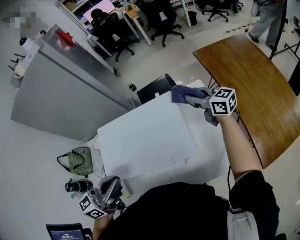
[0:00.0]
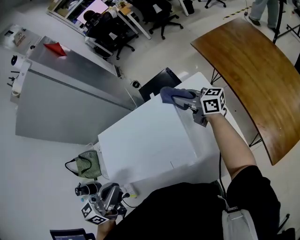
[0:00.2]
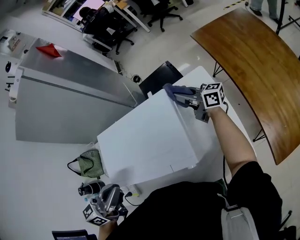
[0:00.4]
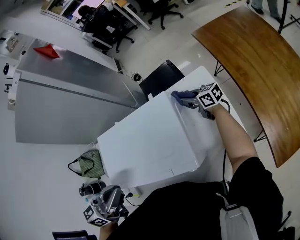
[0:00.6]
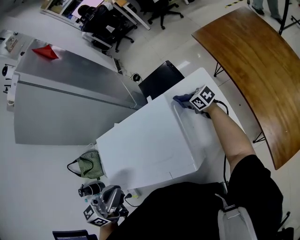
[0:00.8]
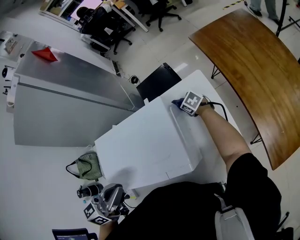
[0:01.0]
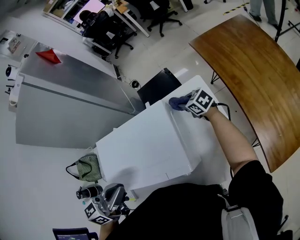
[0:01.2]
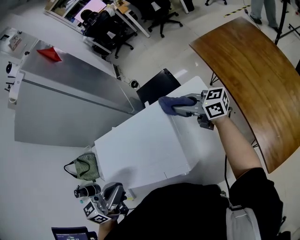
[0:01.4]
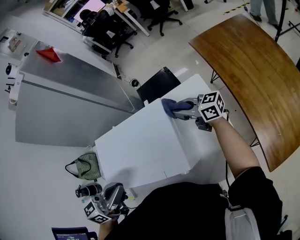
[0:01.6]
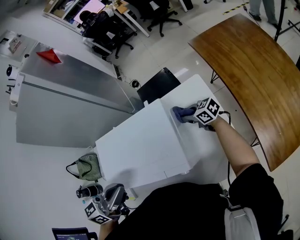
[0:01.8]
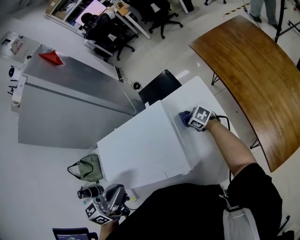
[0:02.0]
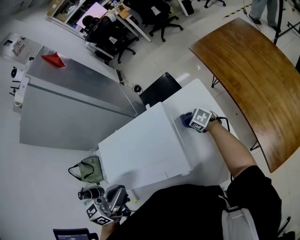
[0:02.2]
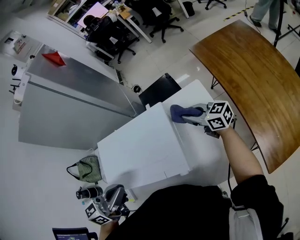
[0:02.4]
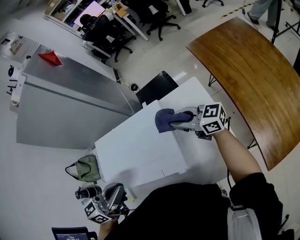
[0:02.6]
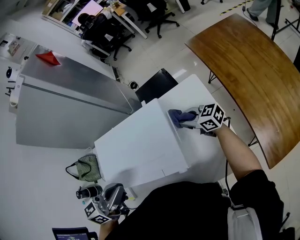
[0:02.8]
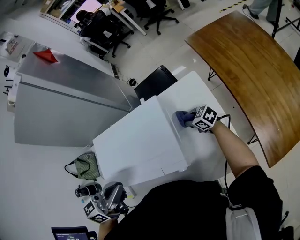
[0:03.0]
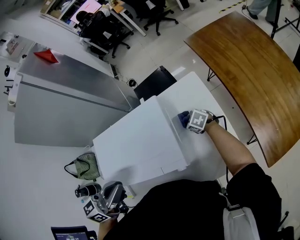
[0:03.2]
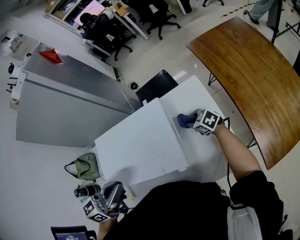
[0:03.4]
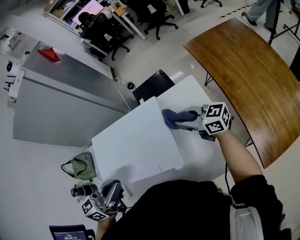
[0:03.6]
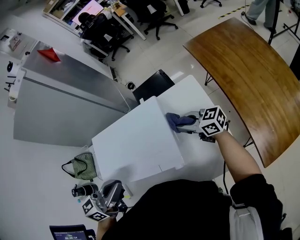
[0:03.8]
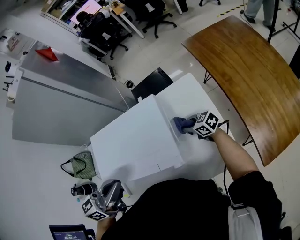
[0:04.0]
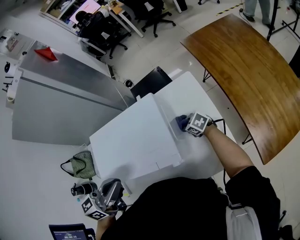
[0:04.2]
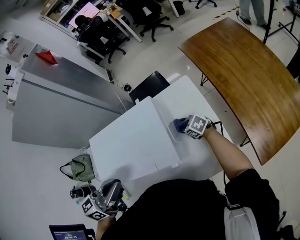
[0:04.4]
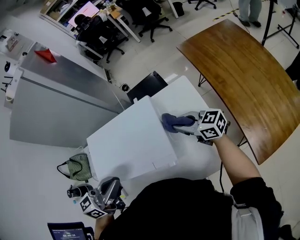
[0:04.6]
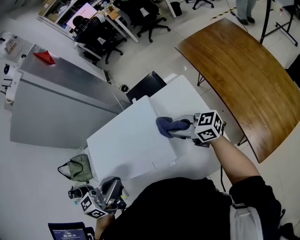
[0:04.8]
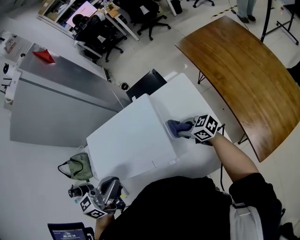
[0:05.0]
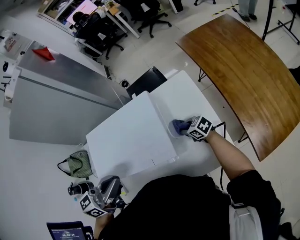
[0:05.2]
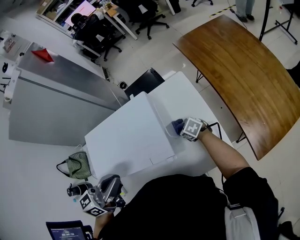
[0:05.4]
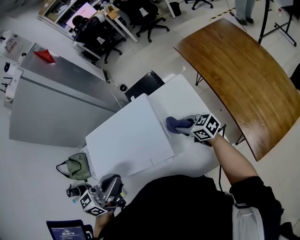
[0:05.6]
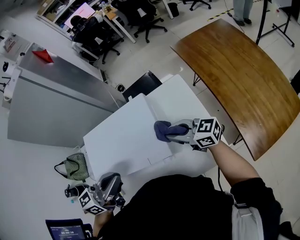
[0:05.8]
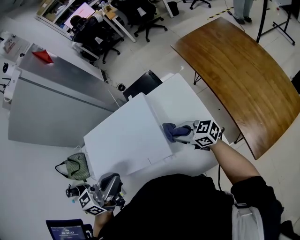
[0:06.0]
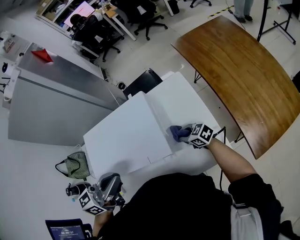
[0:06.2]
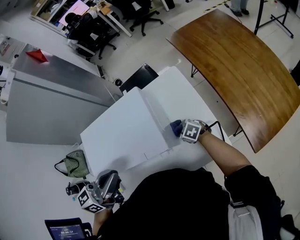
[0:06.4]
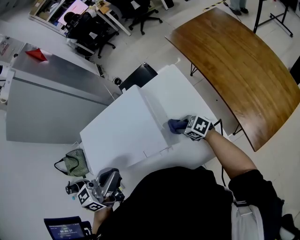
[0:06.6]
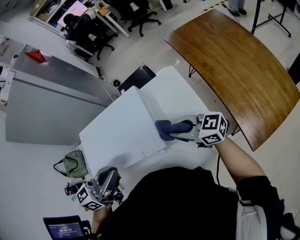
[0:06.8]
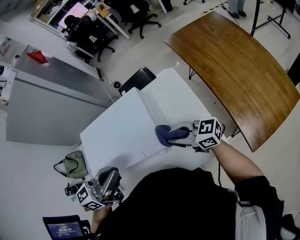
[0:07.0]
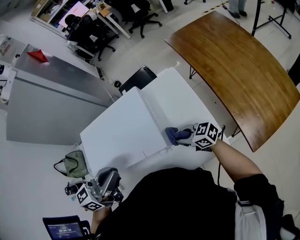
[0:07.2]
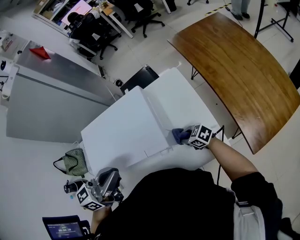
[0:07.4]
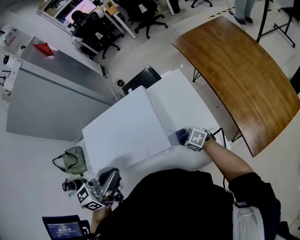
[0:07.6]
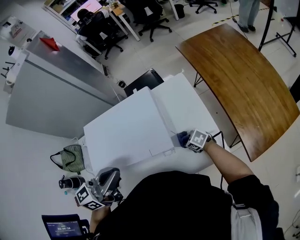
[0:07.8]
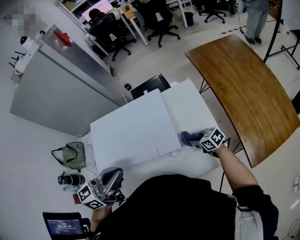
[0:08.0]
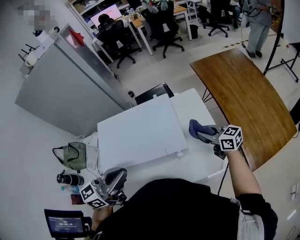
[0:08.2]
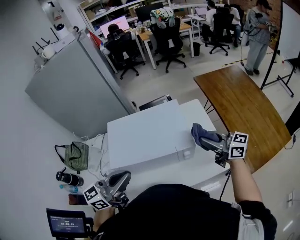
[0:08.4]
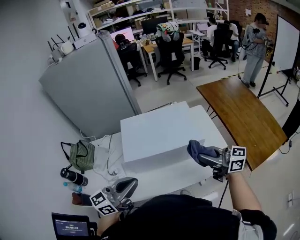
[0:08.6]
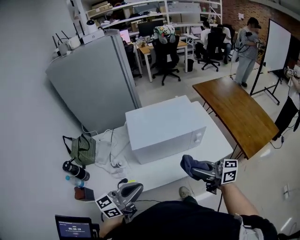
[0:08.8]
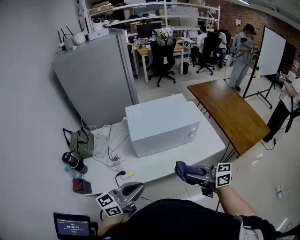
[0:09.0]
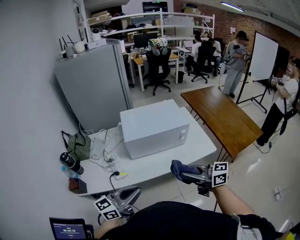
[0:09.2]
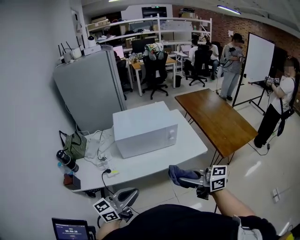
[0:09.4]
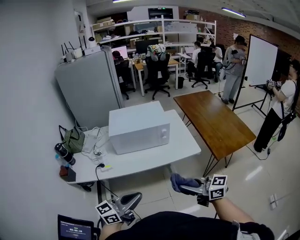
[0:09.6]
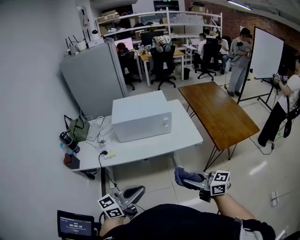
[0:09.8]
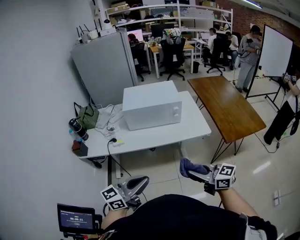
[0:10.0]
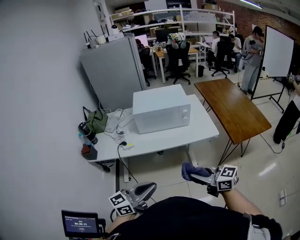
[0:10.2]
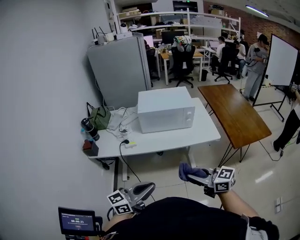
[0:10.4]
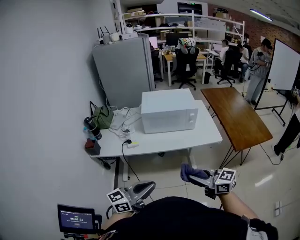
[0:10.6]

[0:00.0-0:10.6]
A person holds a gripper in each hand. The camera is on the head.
0:00.0 to 0:01.6: The right gripper travels downward and back again, roughly 30 cm each way, and swivels roughly 20 degrees, while the left gripper moves to the right, roughly 5 cm.
0:01.6 to 0:03.0: The right gripper swings up and down, about 25 cm each way, with 2 reversals, and points its fingers some 30 degrees further downward.
0:03.0 to 0:04.6: The right gripper goes up and down, roughly 25 cm each way, reversing 3 times, and rotates about 20 degrees.
0:04.6 to 0:06.0: The right gripper goes up and down, approximately 25 cm each way, reversing 2 times.
0:06.0 to 0:07.6: The right gripper goes up and down, about 25 cm each way, reversing 2 times, and angles its fingers downward, by approximately 40 degrees.
0:07.6 to 0:09.0: The right gripper moves upward, roughly 35 cm, and points its fingers some 50 degrees further upward. Meanwhile the left gripper changes place by roughly 35 cm.
0:09.0 to 0:10.6: Both grippers move backward, some 25 cm.

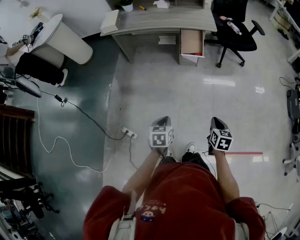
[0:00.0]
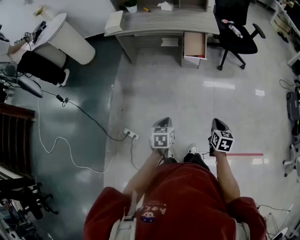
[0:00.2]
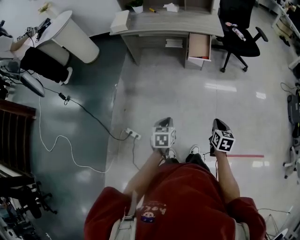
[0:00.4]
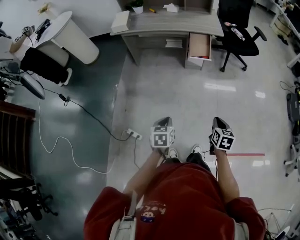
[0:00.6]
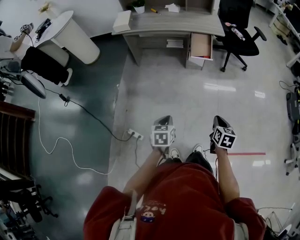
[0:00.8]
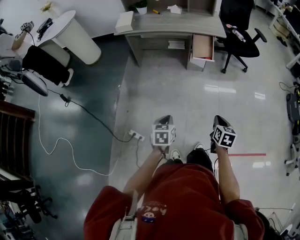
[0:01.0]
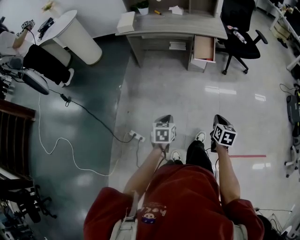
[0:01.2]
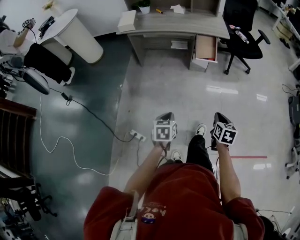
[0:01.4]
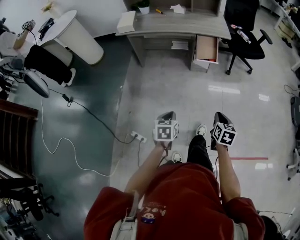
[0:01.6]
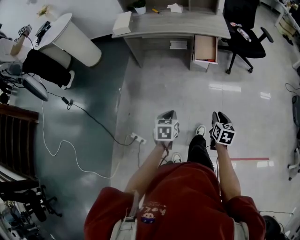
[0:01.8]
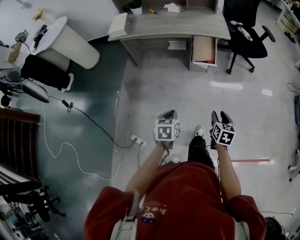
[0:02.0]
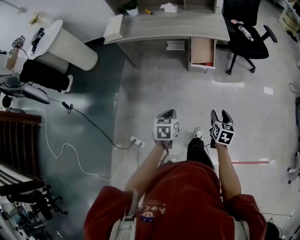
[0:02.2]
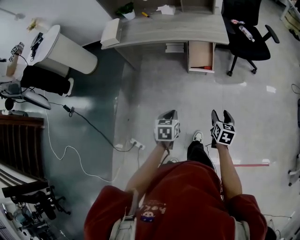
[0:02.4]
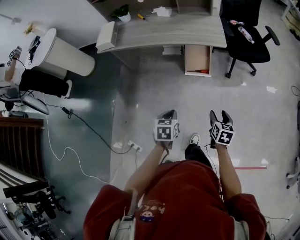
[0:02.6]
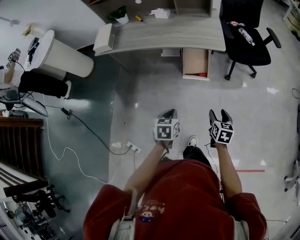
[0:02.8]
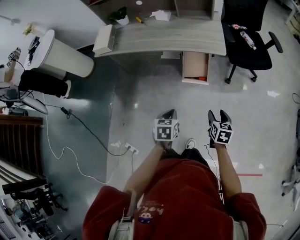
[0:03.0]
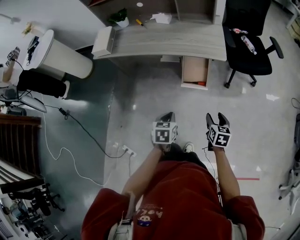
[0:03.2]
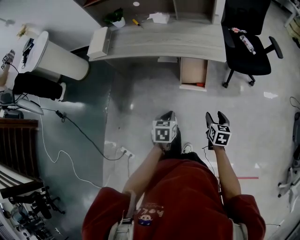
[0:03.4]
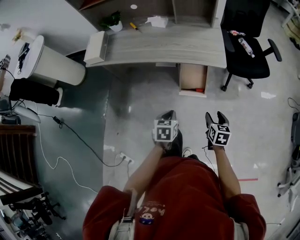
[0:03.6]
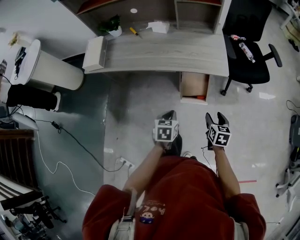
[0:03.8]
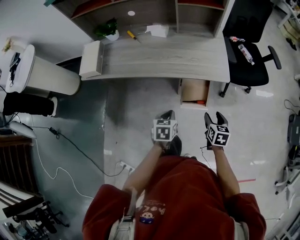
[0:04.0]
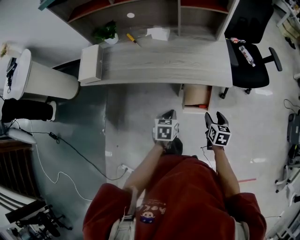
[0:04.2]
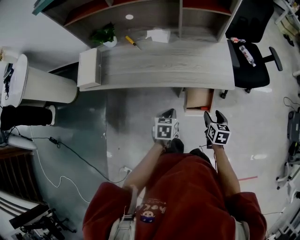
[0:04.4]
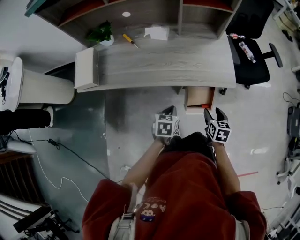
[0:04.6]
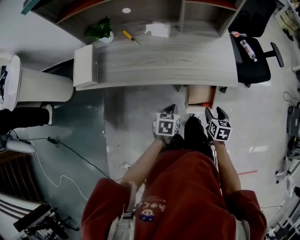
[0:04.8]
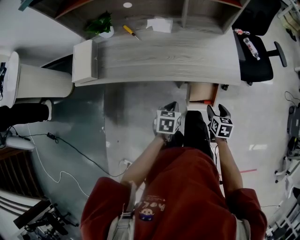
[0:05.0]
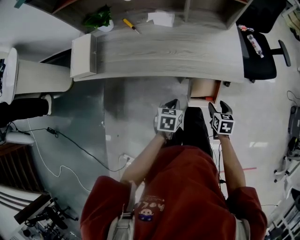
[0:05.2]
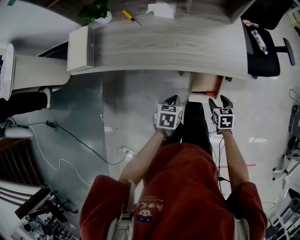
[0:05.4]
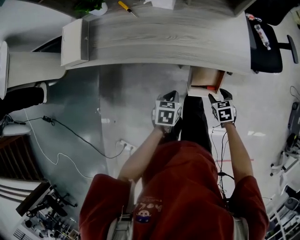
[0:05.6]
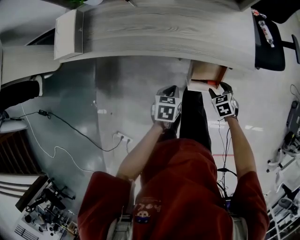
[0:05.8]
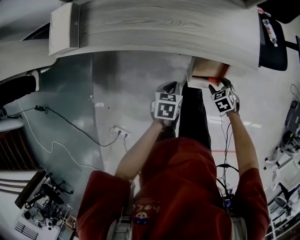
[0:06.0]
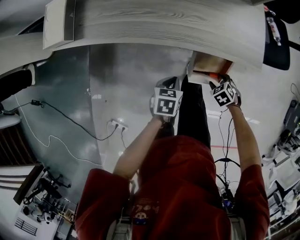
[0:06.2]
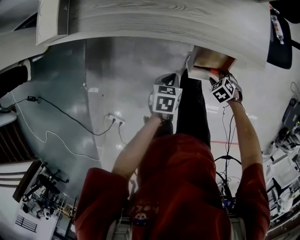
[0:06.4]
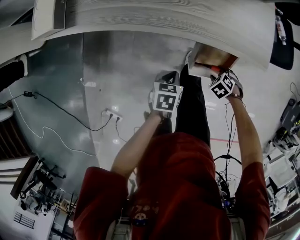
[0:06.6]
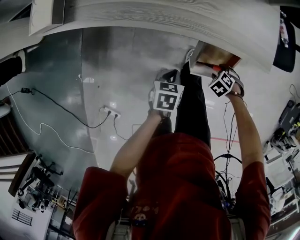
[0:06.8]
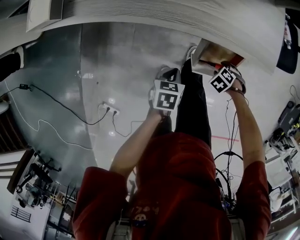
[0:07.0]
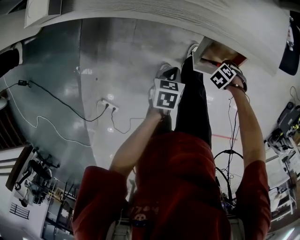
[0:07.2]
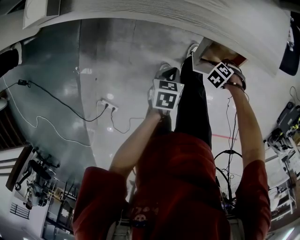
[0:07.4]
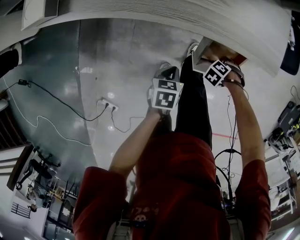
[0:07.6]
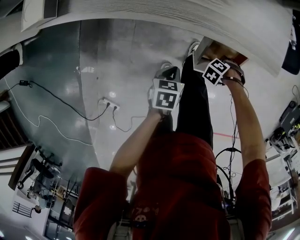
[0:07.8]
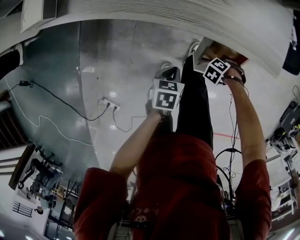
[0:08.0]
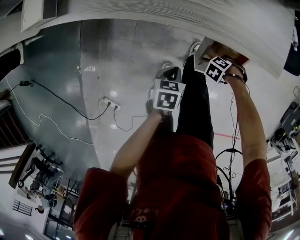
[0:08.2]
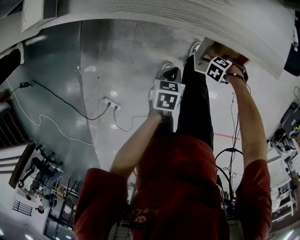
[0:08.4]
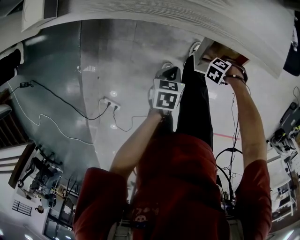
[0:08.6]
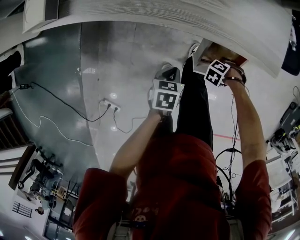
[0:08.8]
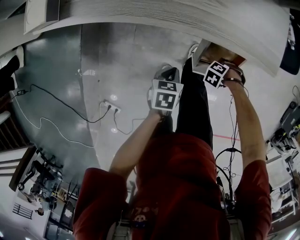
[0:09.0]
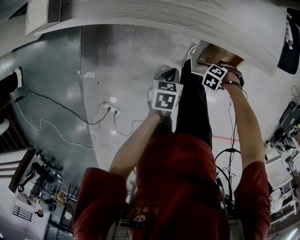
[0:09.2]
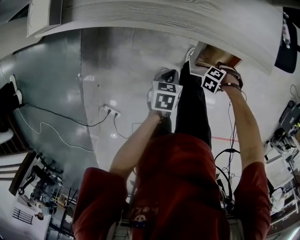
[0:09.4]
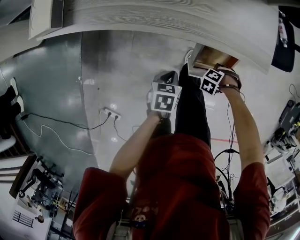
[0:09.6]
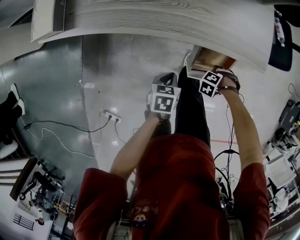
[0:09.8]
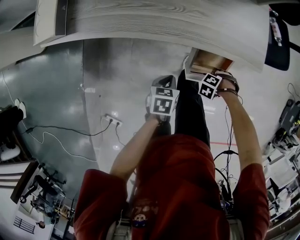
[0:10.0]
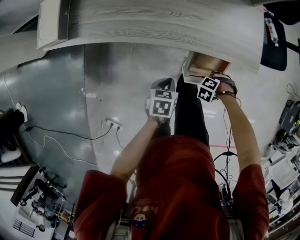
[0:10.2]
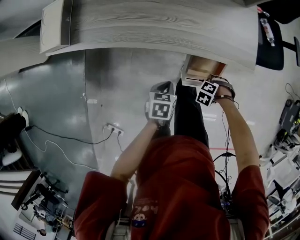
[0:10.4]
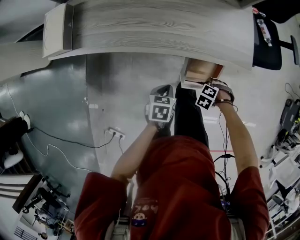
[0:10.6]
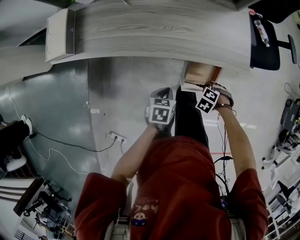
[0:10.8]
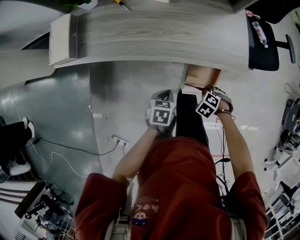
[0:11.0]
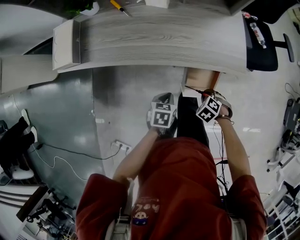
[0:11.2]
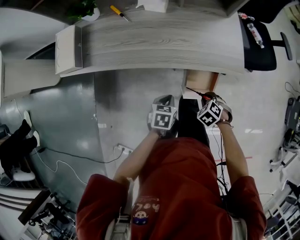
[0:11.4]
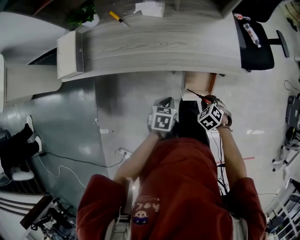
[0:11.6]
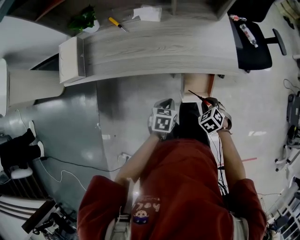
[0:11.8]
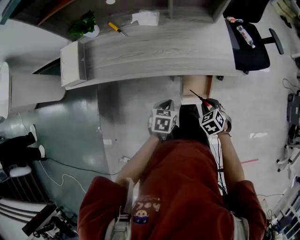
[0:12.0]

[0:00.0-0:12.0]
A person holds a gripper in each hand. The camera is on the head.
0:00.0 to 0:01.6: The two grippers go roughly 10 cm to the left.
0:01.6 to 0:03.0: The grippers both shift forward and to the right by some 35 cm. The right gripper opens its fingers.
0:03.0 to 0:04.4: The left gripper travels forward by about 30 cm, while the right gripper is displaced forward and to the left by roughly 30 cm.
0:04.4 to 0:06.0: Both grippers travel together downward, roughly 15 cm. The right gripper rotates around the line of its fingers by some 40 degrees, counterclockwise from behind.
0:06.0 to 0:07.6: The grippers both shift downward by some 10 cm. The right gripper turns by roughly 40 degrees.
0:07.6 to 0:09.0: The right gripper closes up.
0:09.0 to 0:10.4: The two grippers go some 5 cm upward.
0:10.4 to 0:12.0: The left gripper heads upward, covering some 10 cm, while the right gripper heads upward, covering some 15 cm, and turns by some 50 degrees.

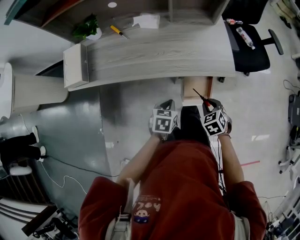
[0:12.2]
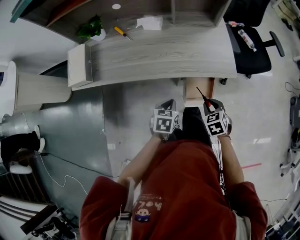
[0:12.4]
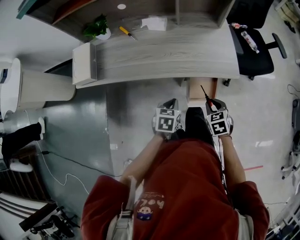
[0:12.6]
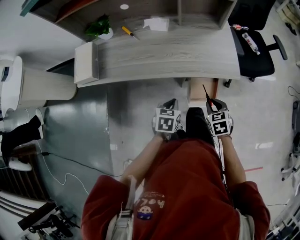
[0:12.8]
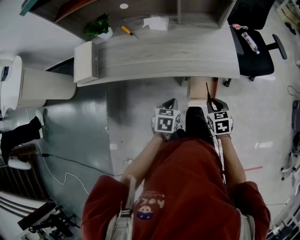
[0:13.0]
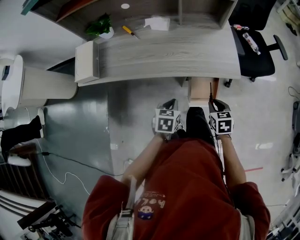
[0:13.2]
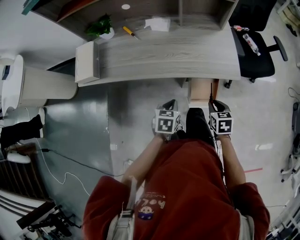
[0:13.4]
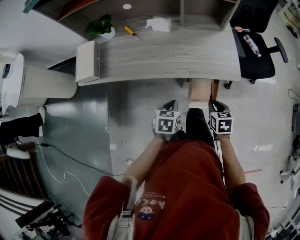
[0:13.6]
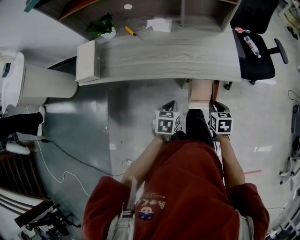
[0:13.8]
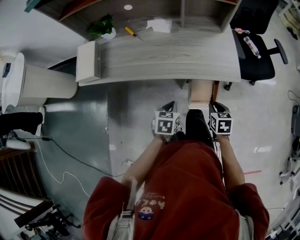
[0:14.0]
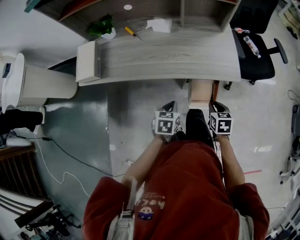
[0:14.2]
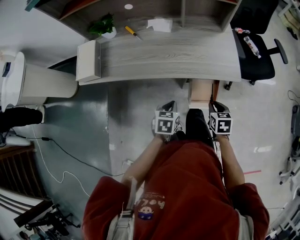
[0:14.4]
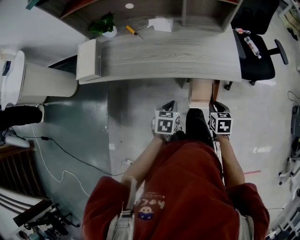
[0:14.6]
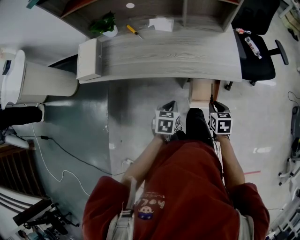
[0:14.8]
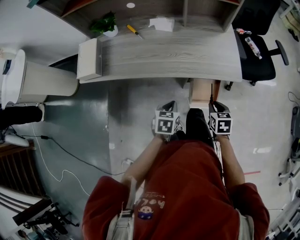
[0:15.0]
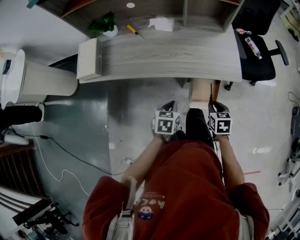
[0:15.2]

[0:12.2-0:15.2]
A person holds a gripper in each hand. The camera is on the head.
0:12.2 to 0:13.8: The right gripper swivels some 30 degrees.
0:13.8 to 0:15.2: Neither gripper changes place.